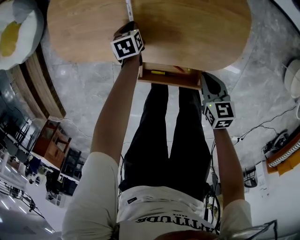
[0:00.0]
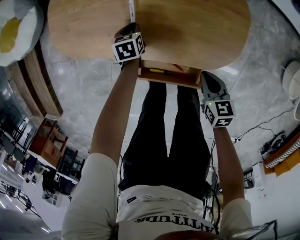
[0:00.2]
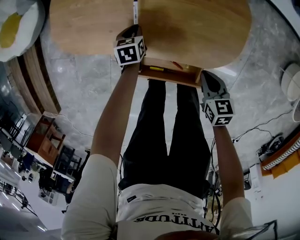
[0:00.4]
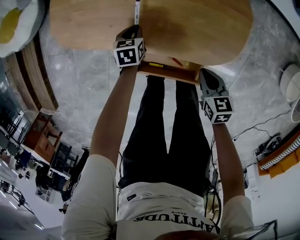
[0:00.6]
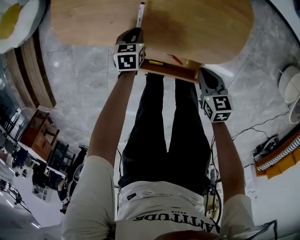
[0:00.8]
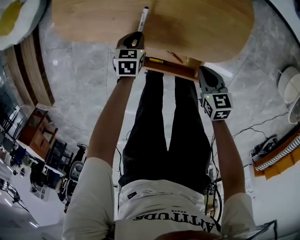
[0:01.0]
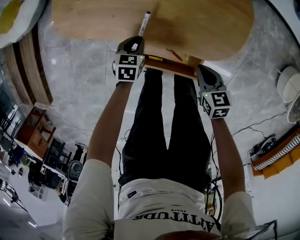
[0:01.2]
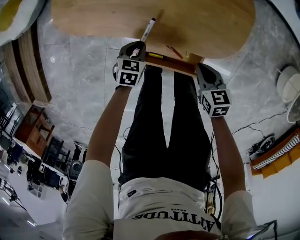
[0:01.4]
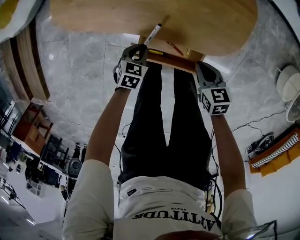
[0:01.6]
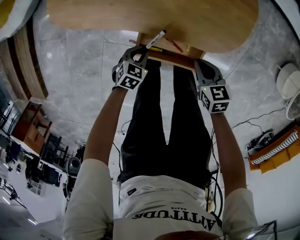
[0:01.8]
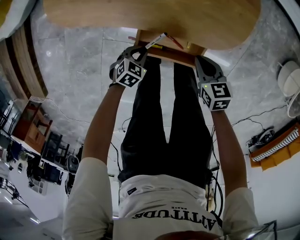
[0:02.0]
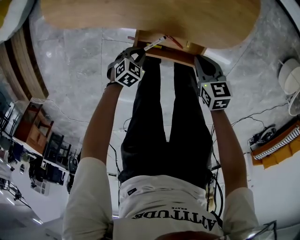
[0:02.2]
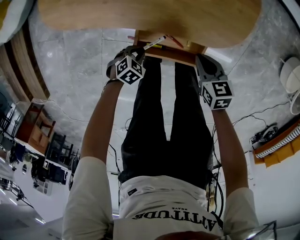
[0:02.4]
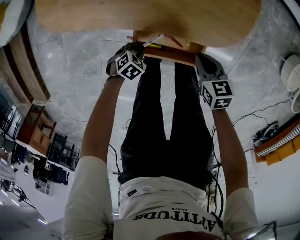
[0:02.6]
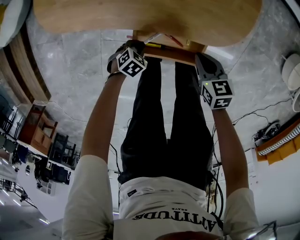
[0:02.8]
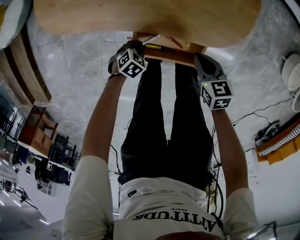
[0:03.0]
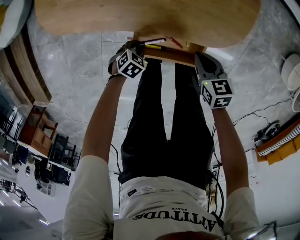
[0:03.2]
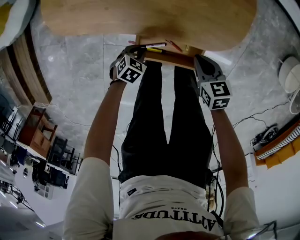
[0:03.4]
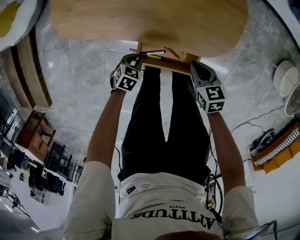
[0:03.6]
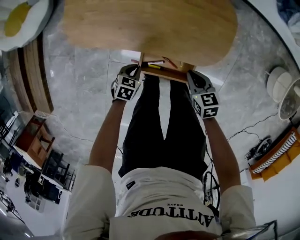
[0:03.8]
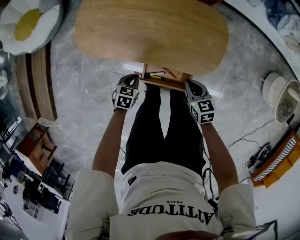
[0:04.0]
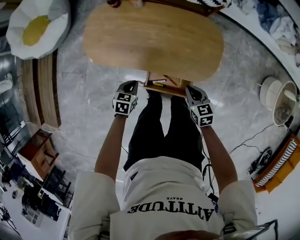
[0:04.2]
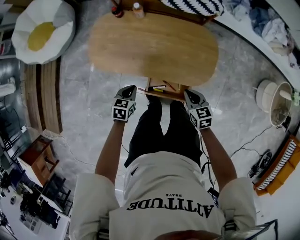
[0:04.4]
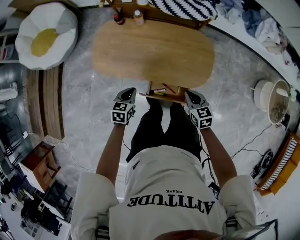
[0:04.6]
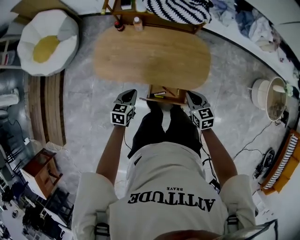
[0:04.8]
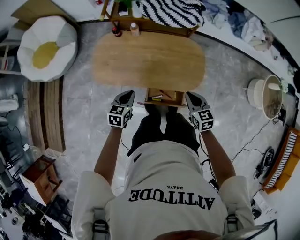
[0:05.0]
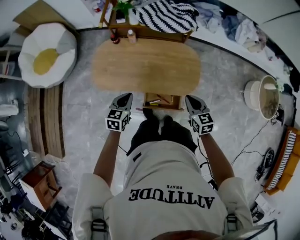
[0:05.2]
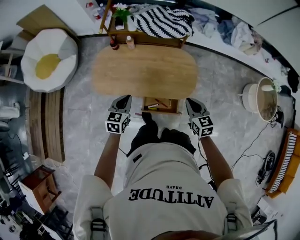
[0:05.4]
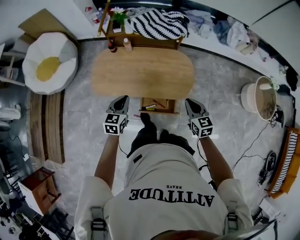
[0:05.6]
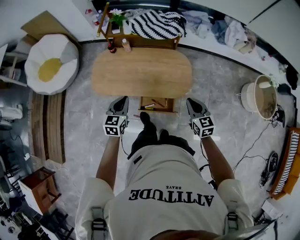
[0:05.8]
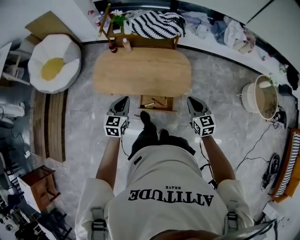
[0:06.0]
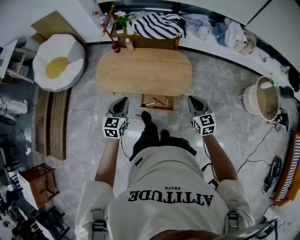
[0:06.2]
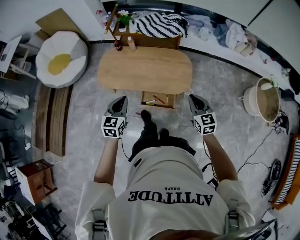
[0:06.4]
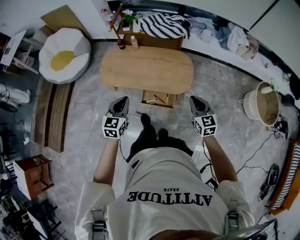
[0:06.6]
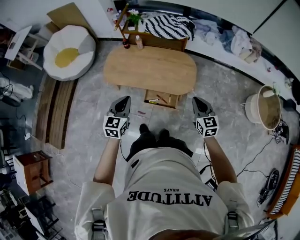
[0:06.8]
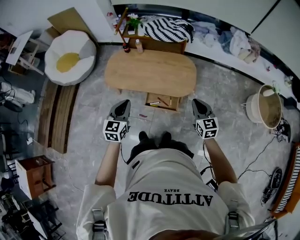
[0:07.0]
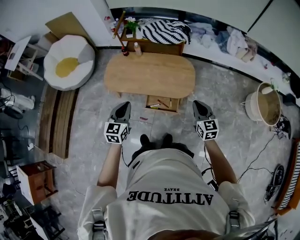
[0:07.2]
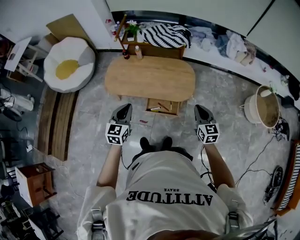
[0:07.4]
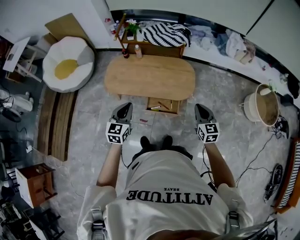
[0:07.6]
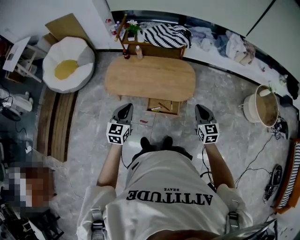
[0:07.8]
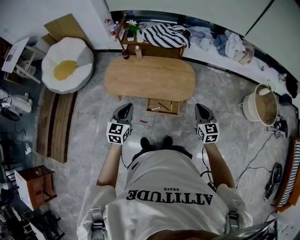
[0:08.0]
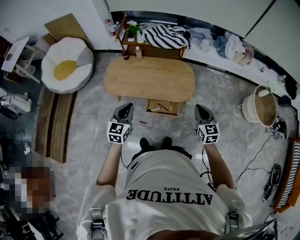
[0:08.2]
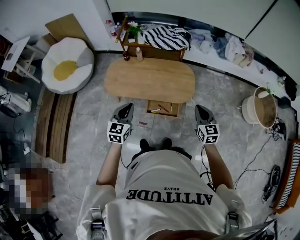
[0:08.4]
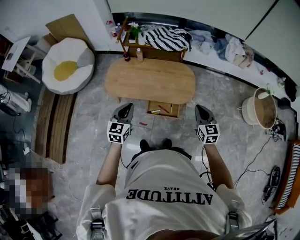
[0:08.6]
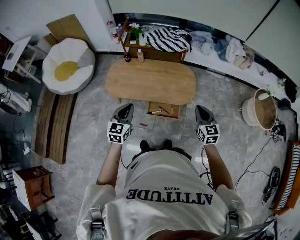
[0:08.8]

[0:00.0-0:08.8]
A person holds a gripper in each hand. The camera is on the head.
0:00.0 to 0:01.4: The right gripper moves some 5 cm. Meanwhile the left gripper is displaced backward by roughly 20 cm, and changes its angle by some 20 degrees.
0:01.4 to 0:03.0: The left gripper heads downward, covering approximately 10 cm, and turns by about 30 degrees.
0:03.0 to 0:04.4: Both grippers move upward, about 30 cm. The left gripper swivels some 40 degrees.
0:04.4 to 0:05.8: The right gripper heads upward, to the right and backward, covering roughly 25 cm, and rotates approximately 20 degrees. The left gripper shifts about 25 cm upward, and swivels roughly 30 degrees.
0:05.8 to 0:07.4: The grippers both shift backward and upward by about 15 cm.
0:07.4 to 0:08.8: The grippers move only a little.

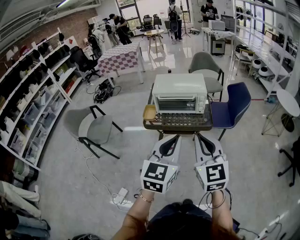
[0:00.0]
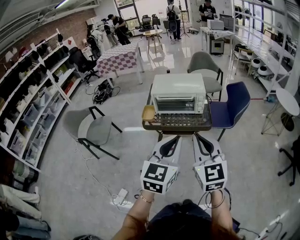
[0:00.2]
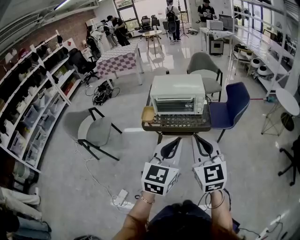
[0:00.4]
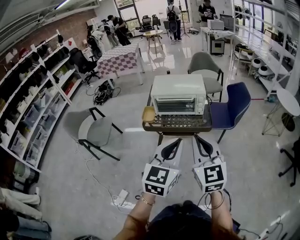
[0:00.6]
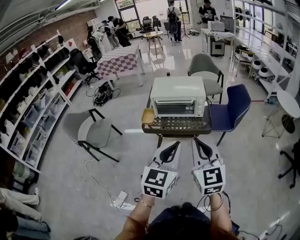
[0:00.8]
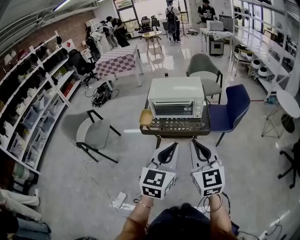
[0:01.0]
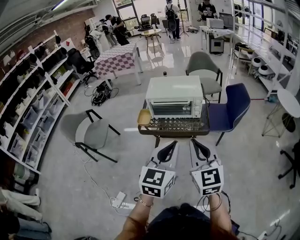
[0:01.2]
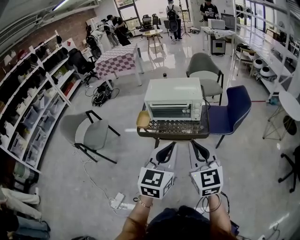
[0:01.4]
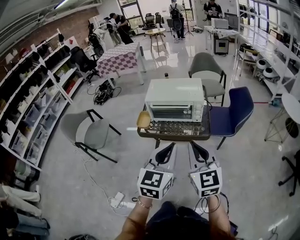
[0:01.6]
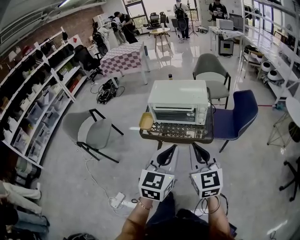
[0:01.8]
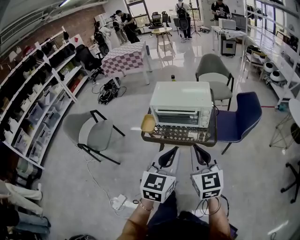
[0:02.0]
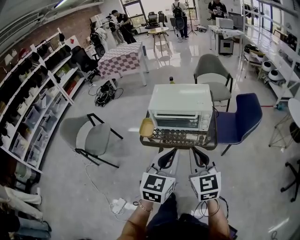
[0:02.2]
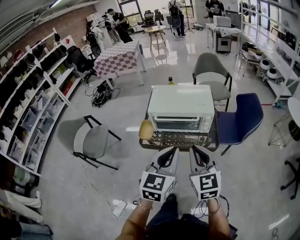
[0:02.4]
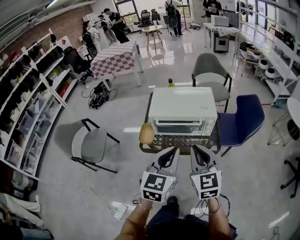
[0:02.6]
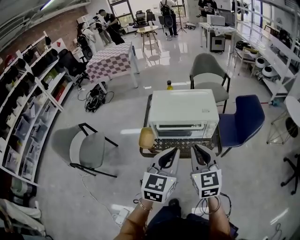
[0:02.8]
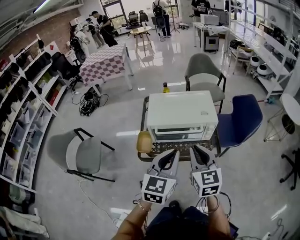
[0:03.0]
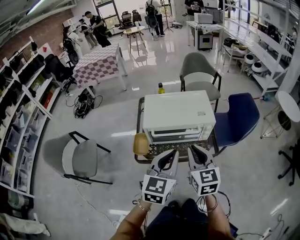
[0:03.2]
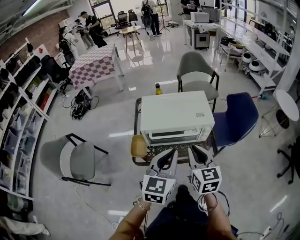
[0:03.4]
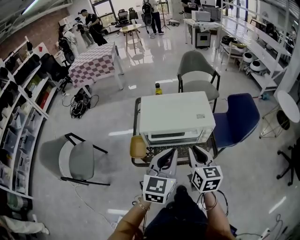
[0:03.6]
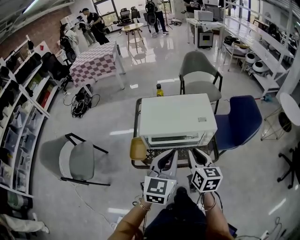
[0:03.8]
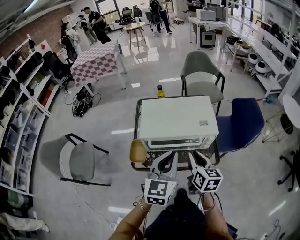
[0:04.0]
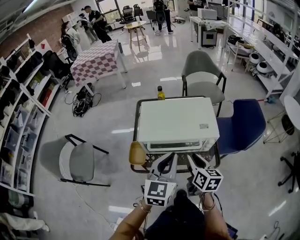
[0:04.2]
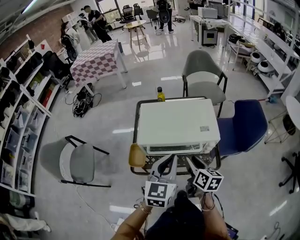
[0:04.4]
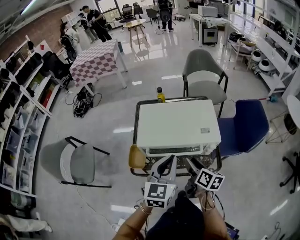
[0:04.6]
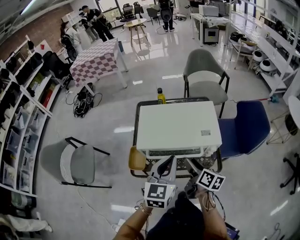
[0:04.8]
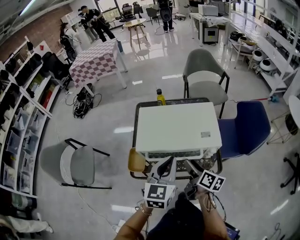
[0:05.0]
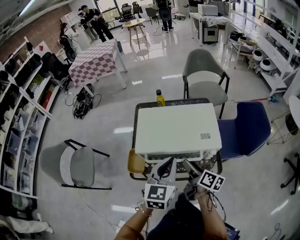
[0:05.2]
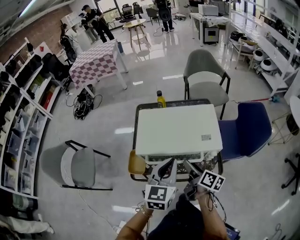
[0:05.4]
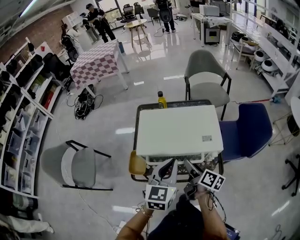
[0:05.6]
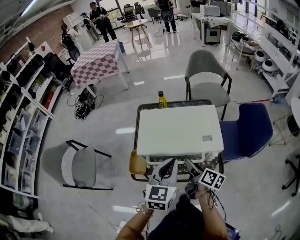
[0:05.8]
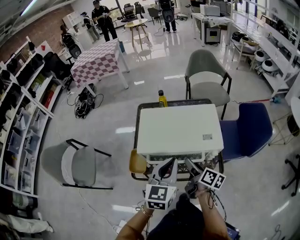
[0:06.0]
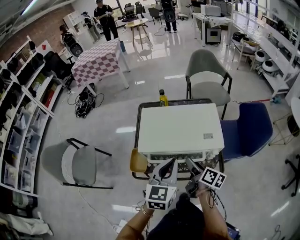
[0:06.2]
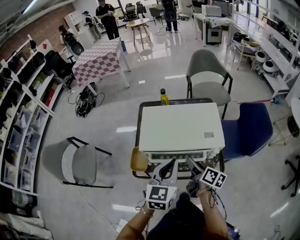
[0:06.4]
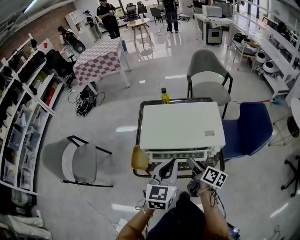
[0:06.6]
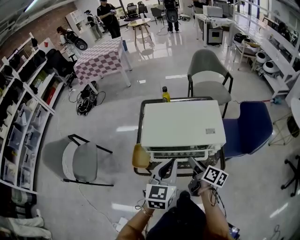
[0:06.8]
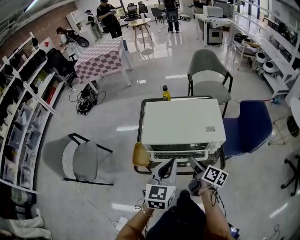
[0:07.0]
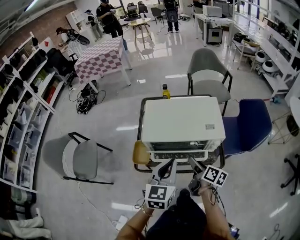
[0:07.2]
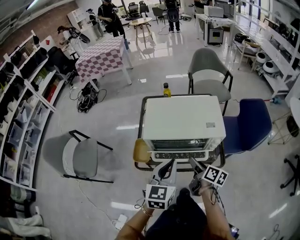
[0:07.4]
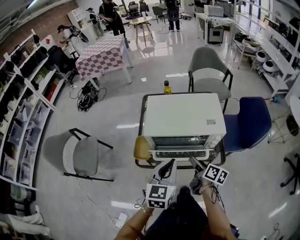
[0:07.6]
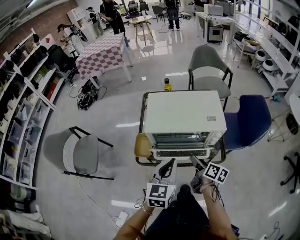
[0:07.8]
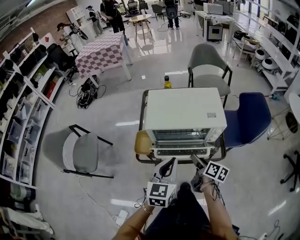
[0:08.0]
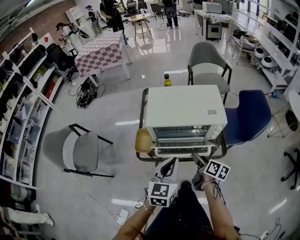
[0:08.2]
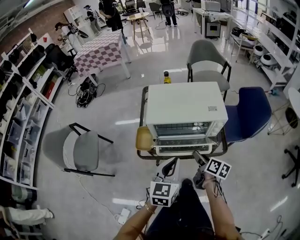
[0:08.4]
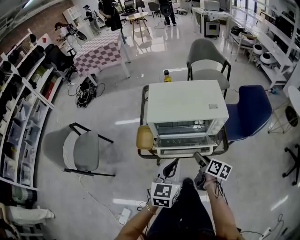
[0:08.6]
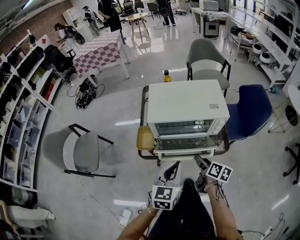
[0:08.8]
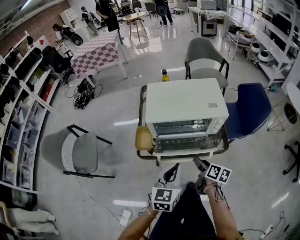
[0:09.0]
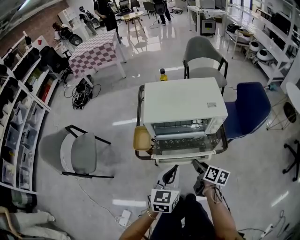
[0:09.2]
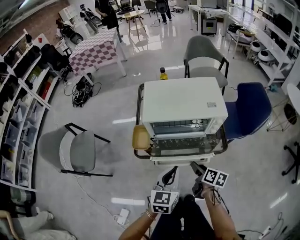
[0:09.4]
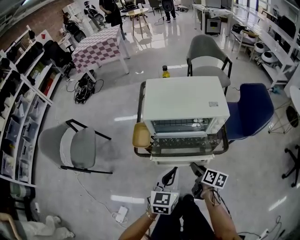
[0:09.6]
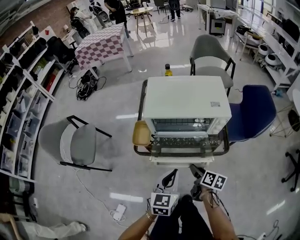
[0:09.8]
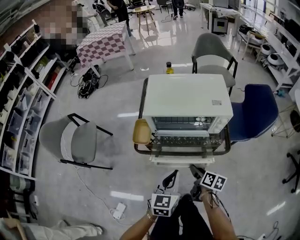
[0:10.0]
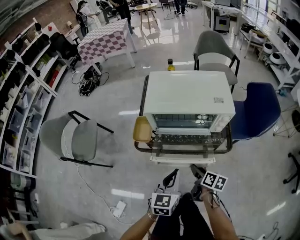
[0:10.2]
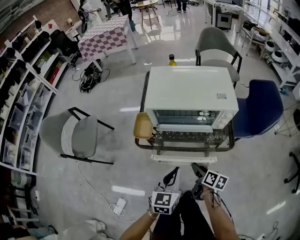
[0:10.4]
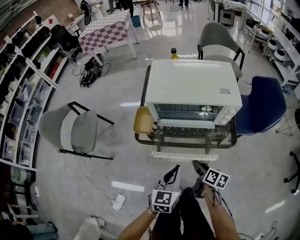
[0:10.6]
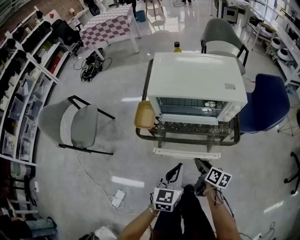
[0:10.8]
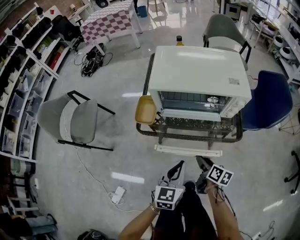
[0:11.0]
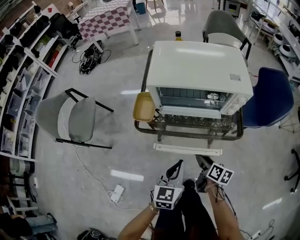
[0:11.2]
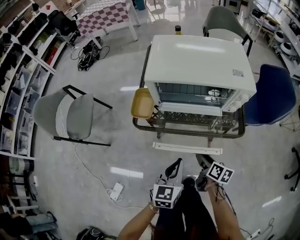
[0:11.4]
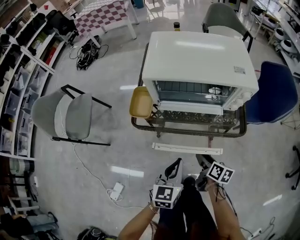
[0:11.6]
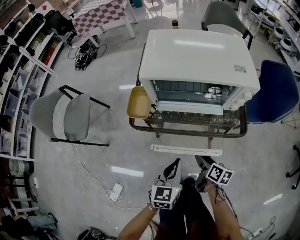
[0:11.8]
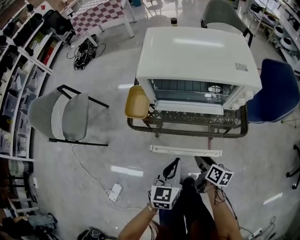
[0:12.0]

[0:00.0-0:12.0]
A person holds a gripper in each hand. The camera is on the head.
0:00.0 to 0:01.6: The grippers both shift forward by approximately 10 cm.
0:01.6 to 0:03.0: The grippers both shift forward and to the left by roughly 25 cm.
0:03.0 to 0:04.4: The right gripper shifts some 20 cm downward and forward, rotates around the line of its fingers by about 40 degrees, clockwise from behind, and opens up; the left gripper moves forward and downward, roughly 15 cm.
0:04.4 to 0:06.0: The right gripper ends up some 5 cm from where it was, and rotates approximately 20 degrees.
0:06.0 to 0:07.6: Both grippers travel together backward, approximately 10 cm.
0:07.6 to 0:09.0: Both grippers move backward and downward, some 10 cm.
0:09.0 to 0:10.4: The two grippers go roughly 10 cm downward.
0:10.4 to 0:12.0: Both grippers travel together downward, about 10 cm.

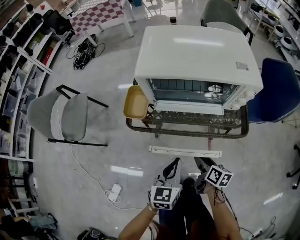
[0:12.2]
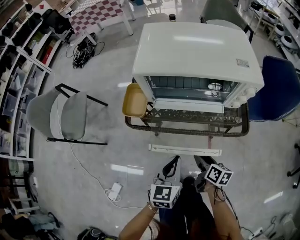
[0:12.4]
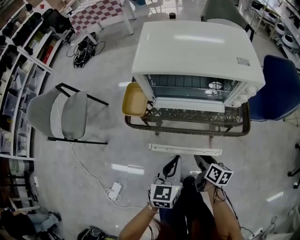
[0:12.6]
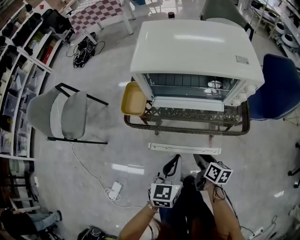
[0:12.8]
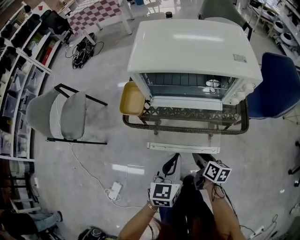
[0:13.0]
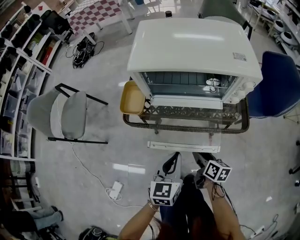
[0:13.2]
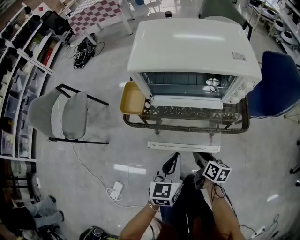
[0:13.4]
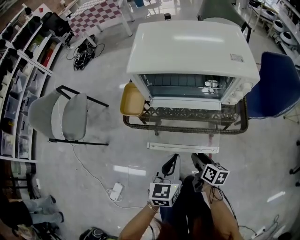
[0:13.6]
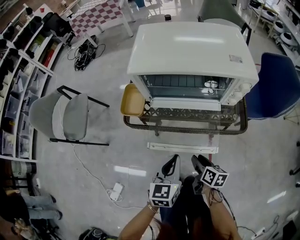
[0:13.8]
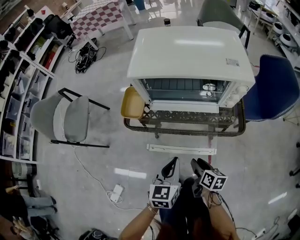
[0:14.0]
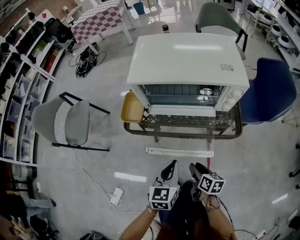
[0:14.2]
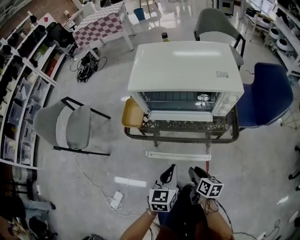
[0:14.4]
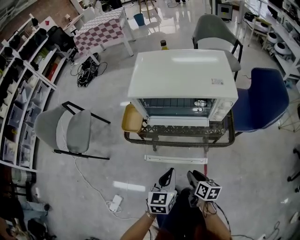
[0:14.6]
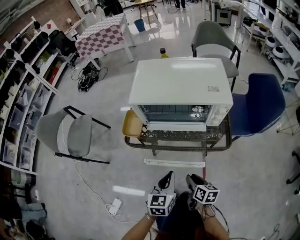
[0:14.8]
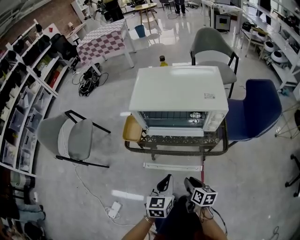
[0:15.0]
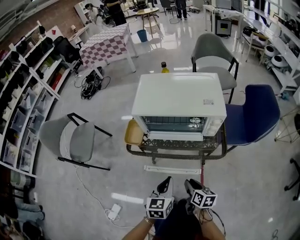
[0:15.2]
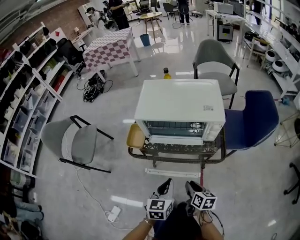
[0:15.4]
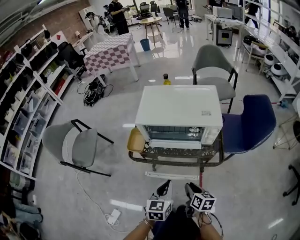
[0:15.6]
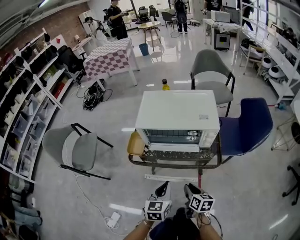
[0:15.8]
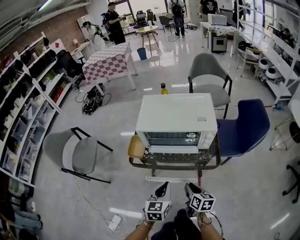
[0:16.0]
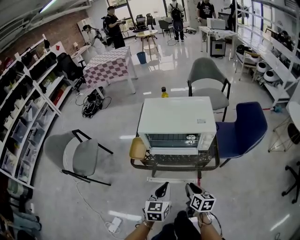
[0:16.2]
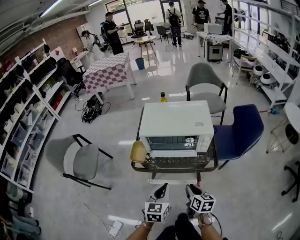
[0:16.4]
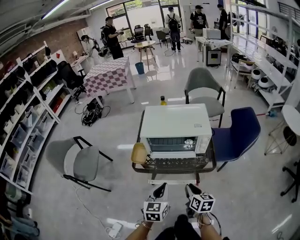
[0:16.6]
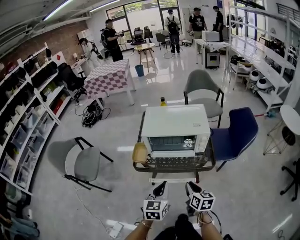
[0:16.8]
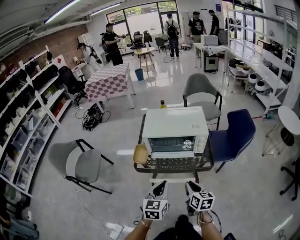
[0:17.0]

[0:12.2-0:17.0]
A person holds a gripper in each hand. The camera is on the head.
0:12.2 to 0:13.8: The grippers stay close to where they were, moving slightly.
0:13.8 to 0:15.4: The two grippers go about 10 cm upward.
0:15.4 to 0:17.0: Both grippers move upward, approximately 15 cm.
